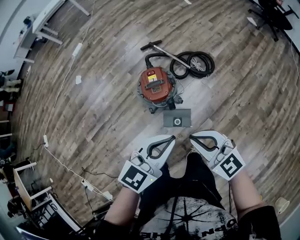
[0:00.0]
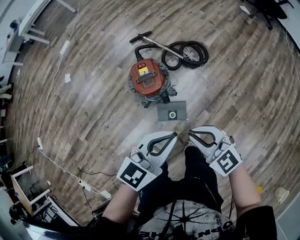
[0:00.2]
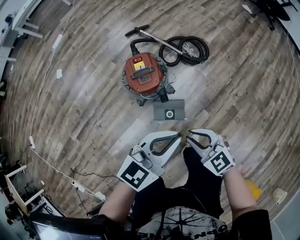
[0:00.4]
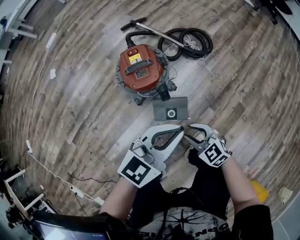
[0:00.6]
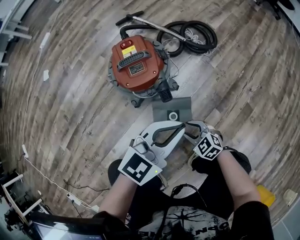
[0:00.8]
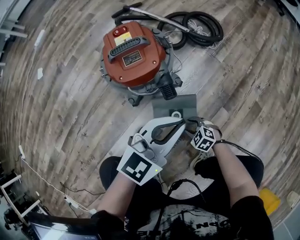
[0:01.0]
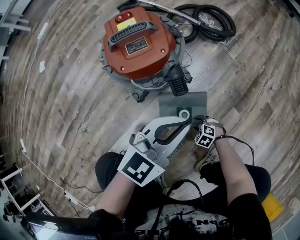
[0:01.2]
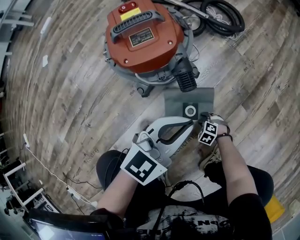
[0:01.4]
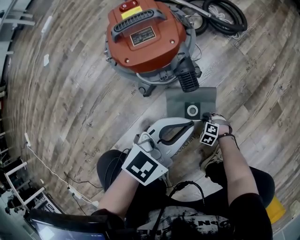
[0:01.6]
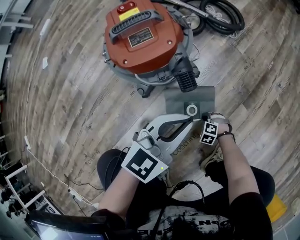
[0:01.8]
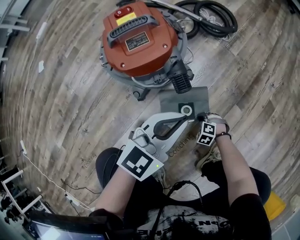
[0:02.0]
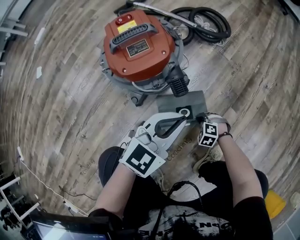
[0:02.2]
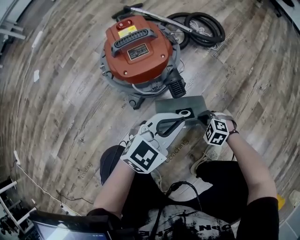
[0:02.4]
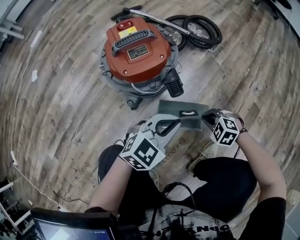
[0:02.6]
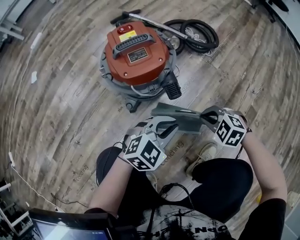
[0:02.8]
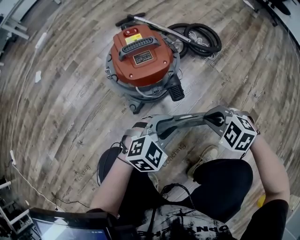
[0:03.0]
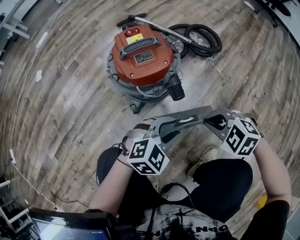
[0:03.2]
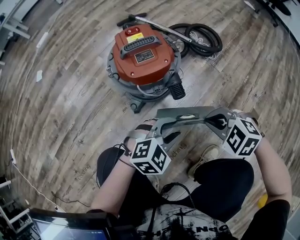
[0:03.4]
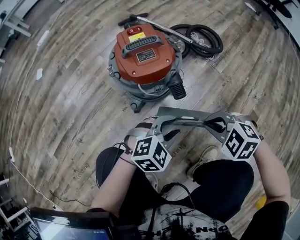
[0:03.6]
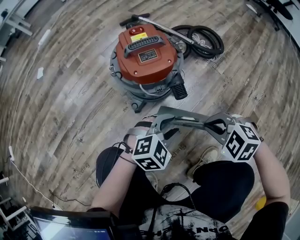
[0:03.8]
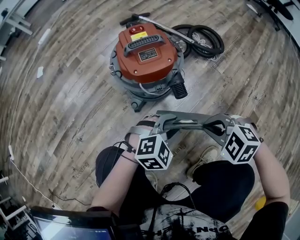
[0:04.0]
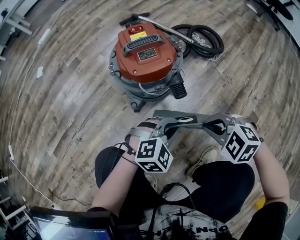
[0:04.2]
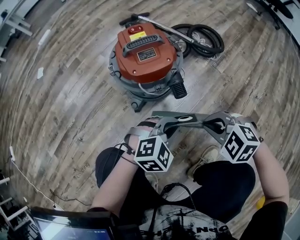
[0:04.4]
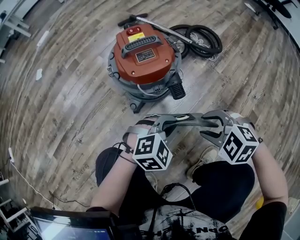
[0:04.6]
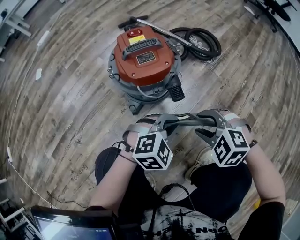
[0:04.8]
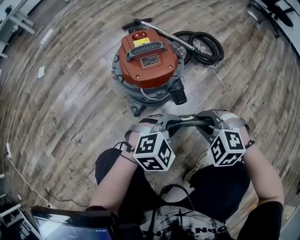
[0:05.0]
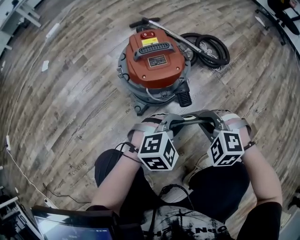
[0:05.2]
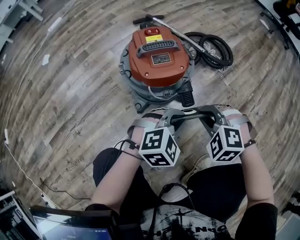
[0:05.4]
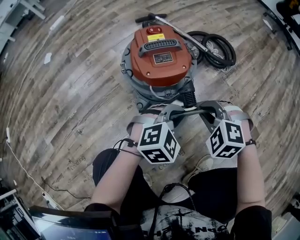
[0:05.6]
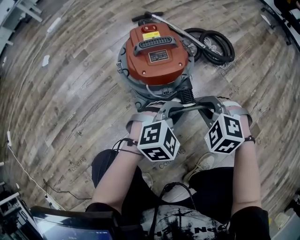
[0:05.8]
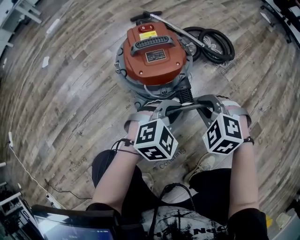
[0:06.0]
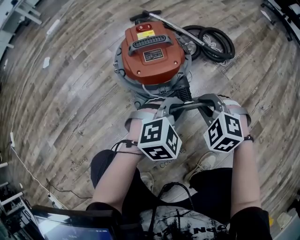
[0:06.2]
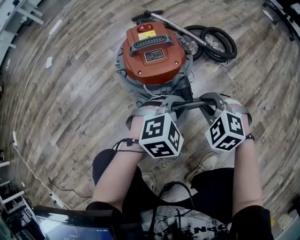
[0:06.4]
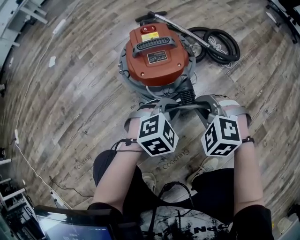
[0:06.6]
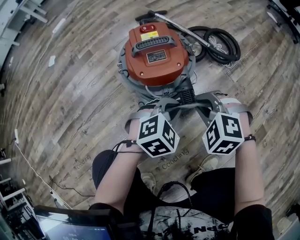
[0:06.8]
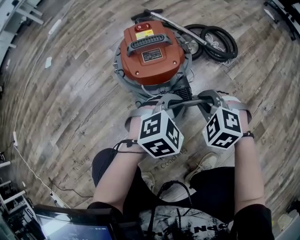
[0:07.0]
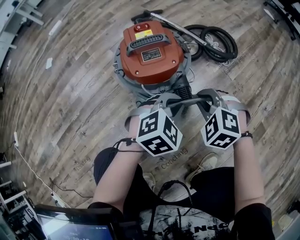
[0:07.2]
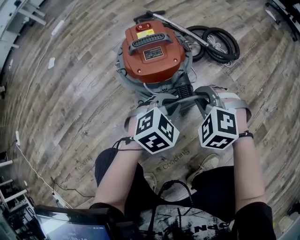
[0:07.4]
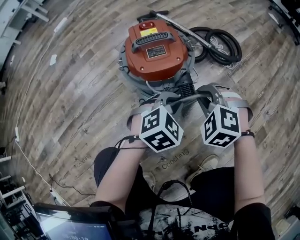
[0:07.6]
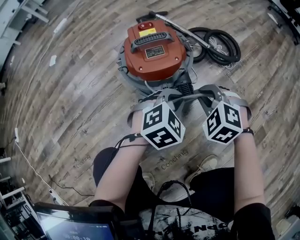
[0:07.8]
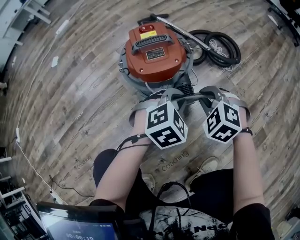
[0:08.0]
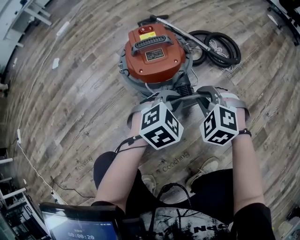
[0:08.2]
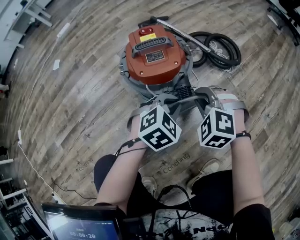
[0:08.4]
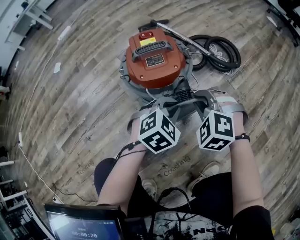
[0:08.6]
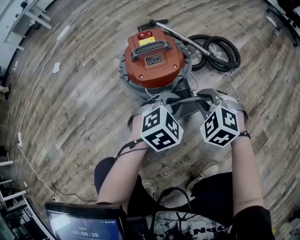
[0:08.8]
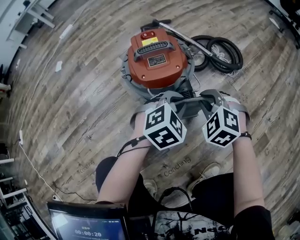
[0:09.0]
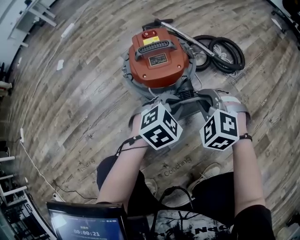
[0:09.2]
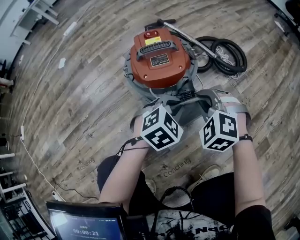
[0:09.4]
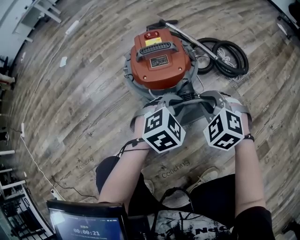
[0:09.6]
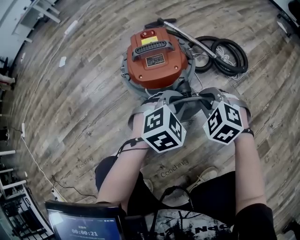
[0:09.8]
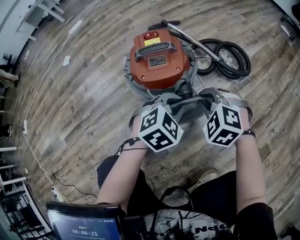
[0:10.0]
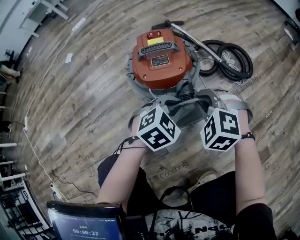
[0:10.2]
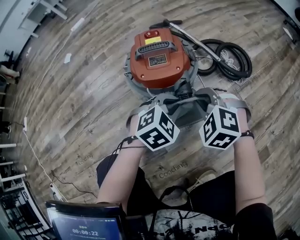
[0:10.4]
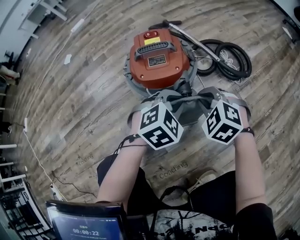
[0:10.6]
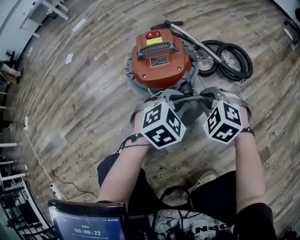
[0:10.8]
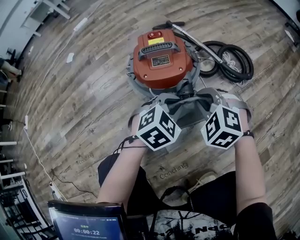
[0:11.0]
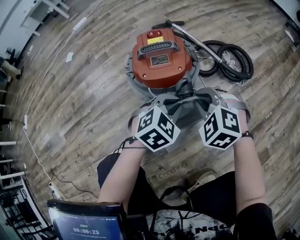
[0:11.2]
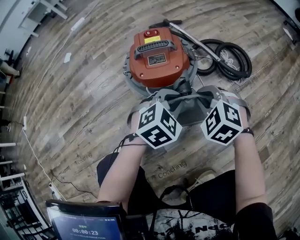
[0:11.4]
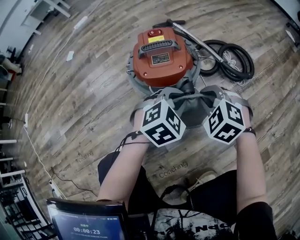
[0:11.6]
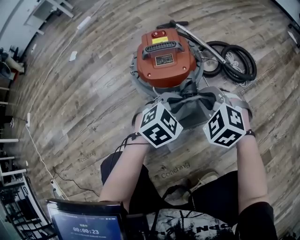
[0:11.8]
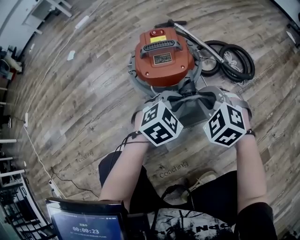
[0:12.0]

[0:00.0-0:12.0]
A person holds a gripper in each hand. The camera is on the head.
0:00.0 to 0:01.6: The left gripper is displaced downward by roughly 60 cm, and swivels roughly 20 degrees. Meanwhile the right gripper heads downward, covering about 90 cm, points its fingers approximately 60 degrees further downward, and opens.
0:01.6 to 0:03.0: The left gripper swivels approximately 30 degrees, and opens its fingers. The right gripper moves upward, approximately 35 cm, and closes its fingers.
0:03.0 to 0:04.4: The left gripper closes.
0:04.4 to 0:06.0: The two grippers go approximately 10 cm forward. The right gripper opens, then closes once more.
0:06.0 to 0:09.0: The grippers stay close to where they were, moving slightly.
0:09.0 to 0:12.0: The grippers stay close to where they were, moving slightly.

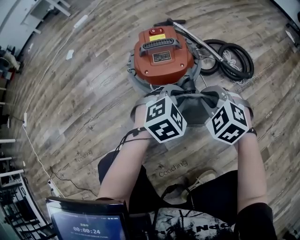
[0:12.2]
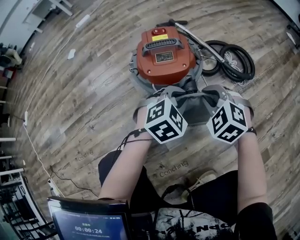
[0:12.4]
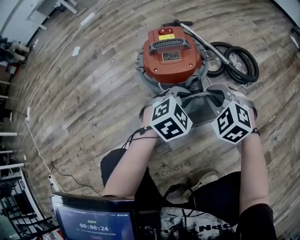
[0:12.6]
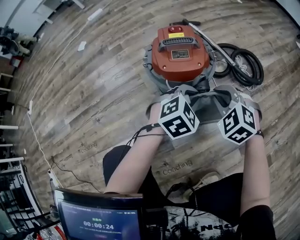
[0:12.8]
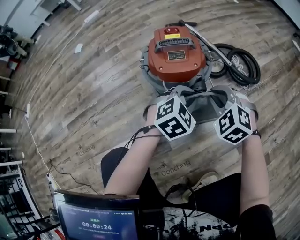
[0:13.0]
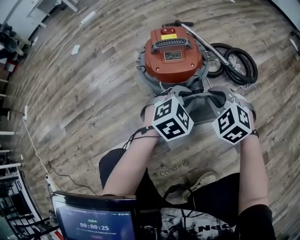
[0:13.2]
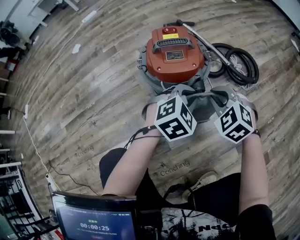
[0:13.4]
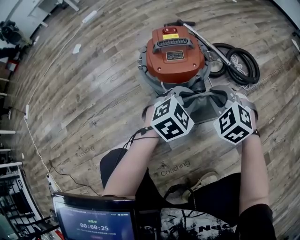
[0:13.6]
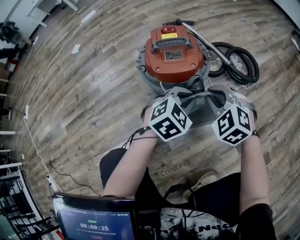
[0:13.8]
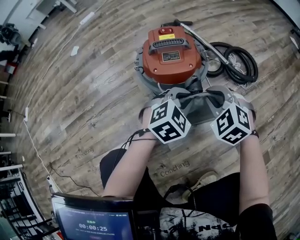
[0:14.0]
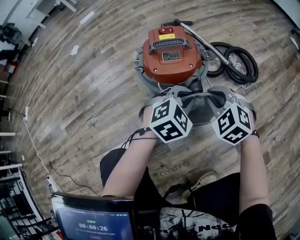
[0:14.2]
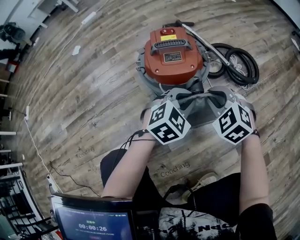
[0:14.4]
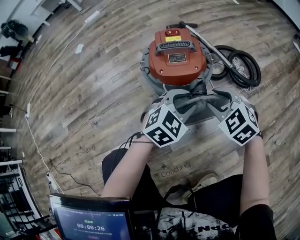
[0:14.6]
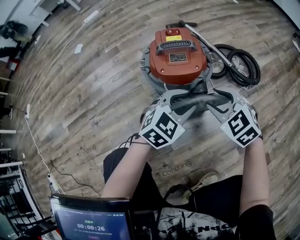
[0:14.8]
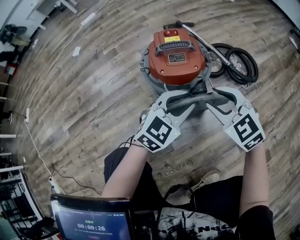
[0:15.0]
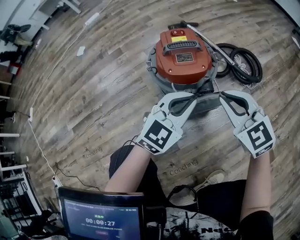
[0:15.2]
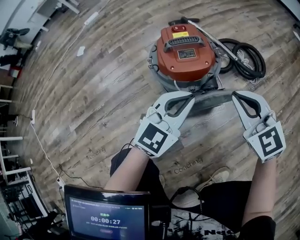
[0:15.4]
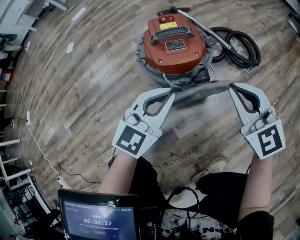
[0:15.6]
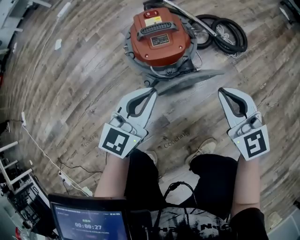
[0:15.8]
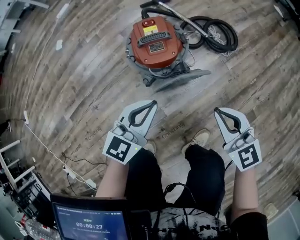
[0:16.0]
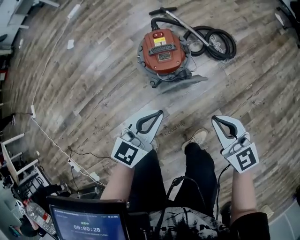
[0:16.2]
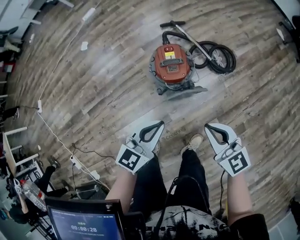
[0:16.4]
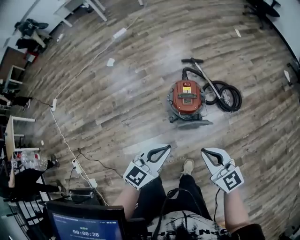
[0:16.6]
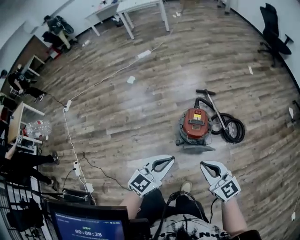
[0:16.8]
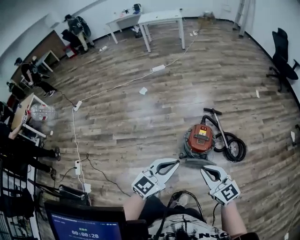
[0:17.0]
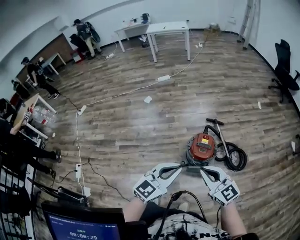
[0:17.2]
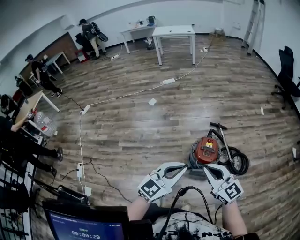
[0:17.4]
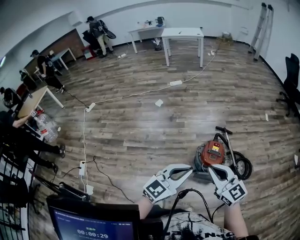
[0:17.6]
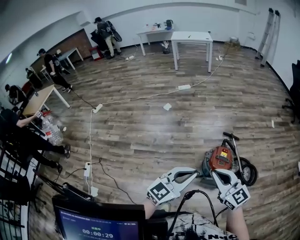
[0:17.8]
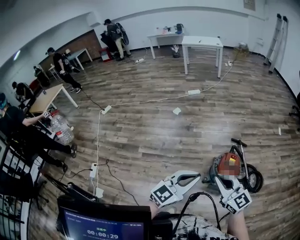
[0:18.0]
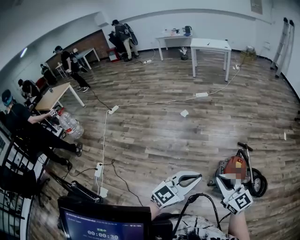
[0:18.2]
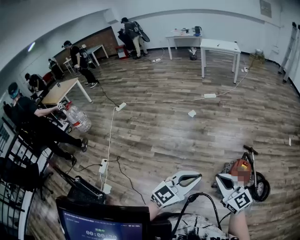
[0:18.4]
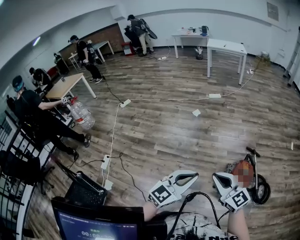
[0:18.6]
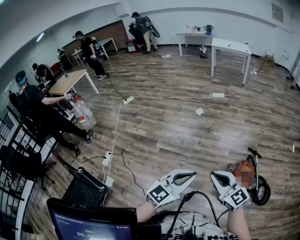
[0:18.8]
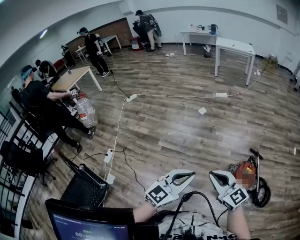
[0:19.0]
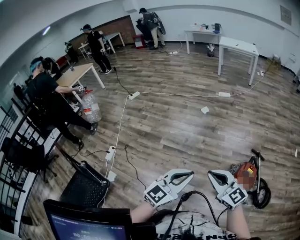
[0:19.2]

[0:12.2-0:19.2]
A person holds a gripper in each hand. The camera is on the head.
0:12.2 to 0:13.6: The grippers move only a little.
0:13.6 to 0:15.0: The right gripper moves approximately 5 cm, swivels approximately 20 degrees, and opens up. The left gripper shifts roughly 5 cm upward, and turns by about 20 degrees.
0:15.0 to 0:16.4: The two grippers go some 40 cm upward. The left gripper rotates approximately 20 degrees, and closes, while the right gripper changes its angle by roughly 30 degrees, and closes.
0:16.4 to 0:17.8: The left gripper shifts approximately 30 cm upward and to the left, and turns by about 20 degrees. Meanwhile the right gripper heads to the left and upward, covering some 30 cm, and changes its angle by approximately 30 degrees.
0:17.8 to 0:19.2: The grippers both shift to the left by roughly 20 cm. The right gripper turns by roughly 20 degrees. The left gripper rotates roughly 20 degrees.

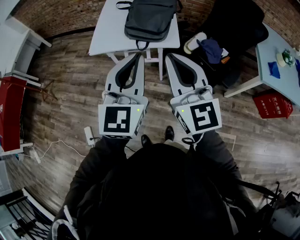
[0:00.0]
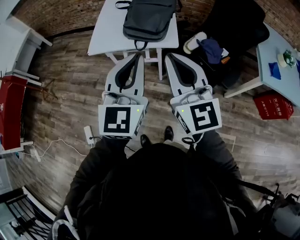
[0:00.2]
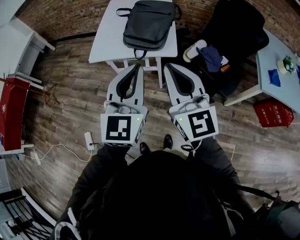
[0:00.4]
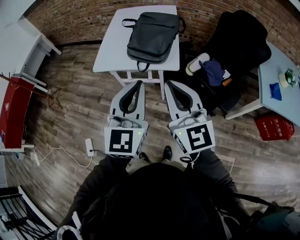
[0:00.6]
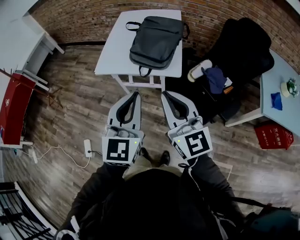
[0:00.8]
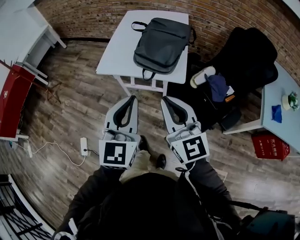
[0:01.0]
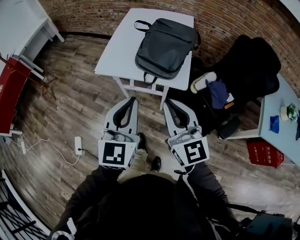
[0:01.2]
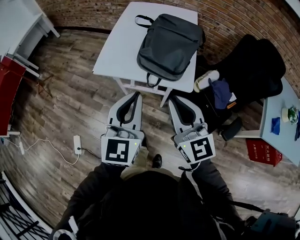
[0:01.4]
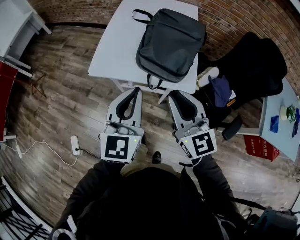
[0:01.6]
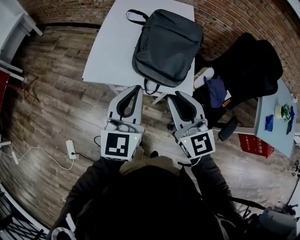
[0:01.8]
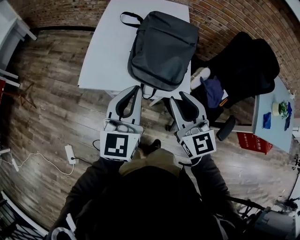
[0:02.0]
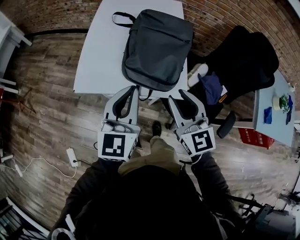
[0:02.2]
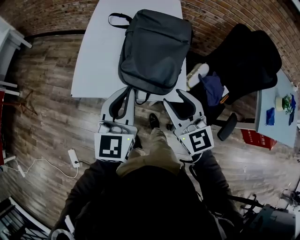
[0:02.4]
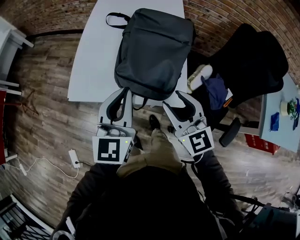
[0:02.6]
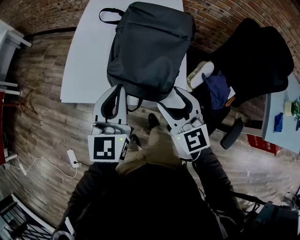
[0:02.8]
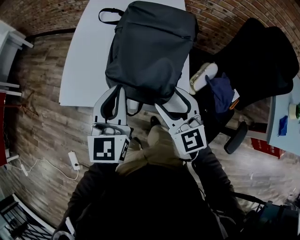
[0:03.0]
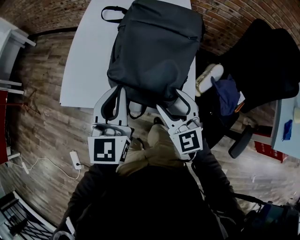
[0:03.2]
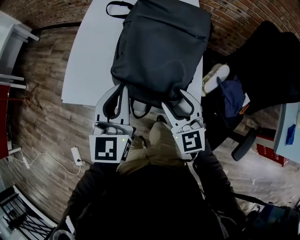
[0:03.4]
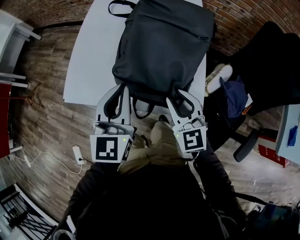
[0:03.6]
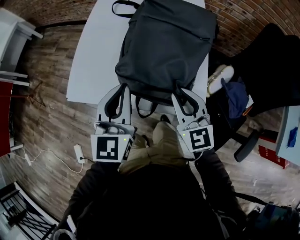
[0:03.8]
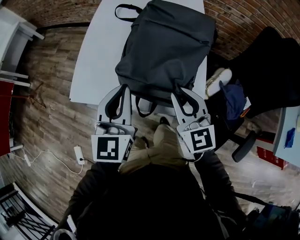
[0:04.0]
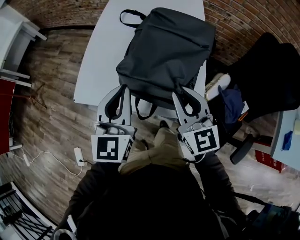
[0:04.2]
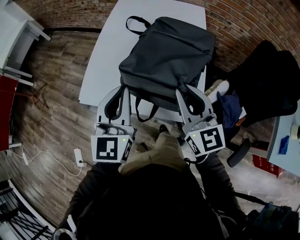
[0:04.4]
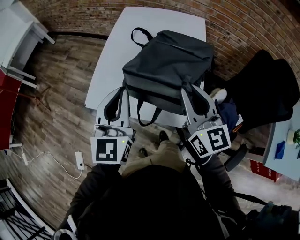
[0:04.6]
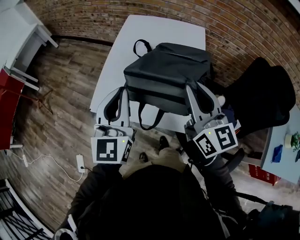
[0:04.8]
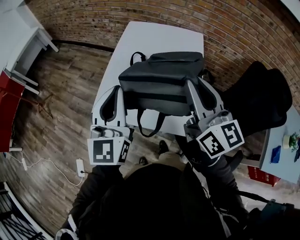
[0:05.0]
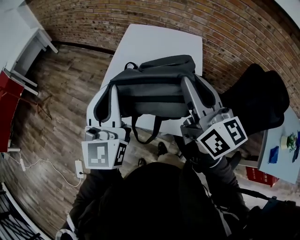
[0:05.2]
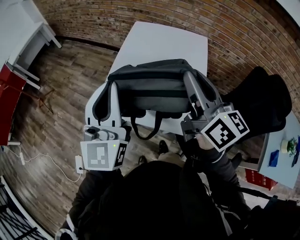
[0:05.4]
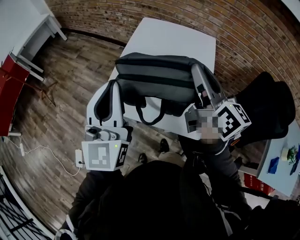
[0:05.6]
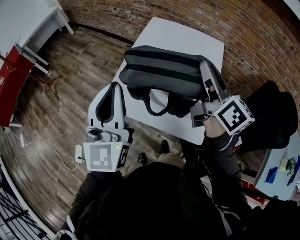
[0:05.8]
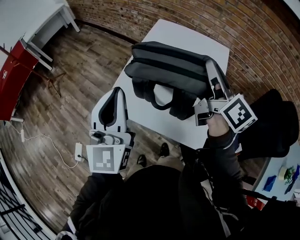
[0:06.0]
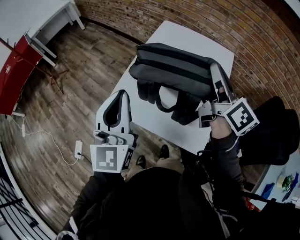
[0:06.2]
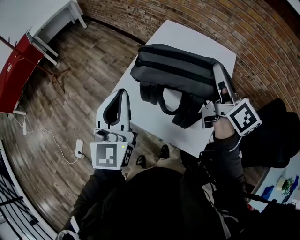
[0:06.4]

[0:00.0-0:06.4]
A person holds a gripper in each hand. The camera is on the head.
0:00.0 to 0:01.6: Both grippers move forward and downward, roughly 25 cm.
0:01.6 to 0:03.2: The right gripper travels downward, forward and to the right by roughly 25 cm, and opens. The left gripper travels forward and downward by roughly 20 cm.
0:03.2 to 0:04.8: The left gripper shifts some 20 cm upward and to the left. The right gripper moves upward, roughly 25 cm, changes its angle by about 30 degrees, and closes its fingers.
0:04.8 to 0:06.4: The right gripper travels forward by approximately 15 cm, and rotates approximately 30 degrees. The left gripper heads to the left, covering roughly 5 cm.
